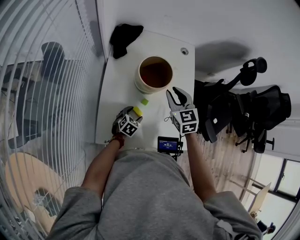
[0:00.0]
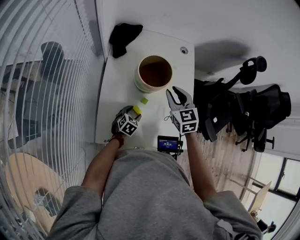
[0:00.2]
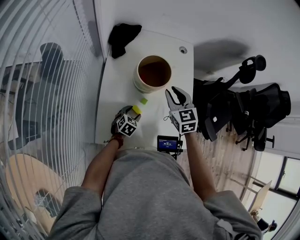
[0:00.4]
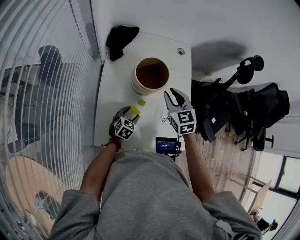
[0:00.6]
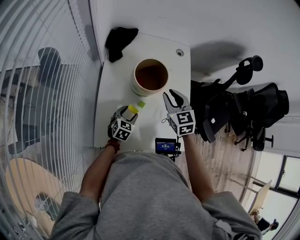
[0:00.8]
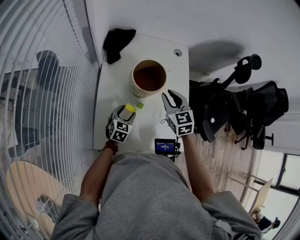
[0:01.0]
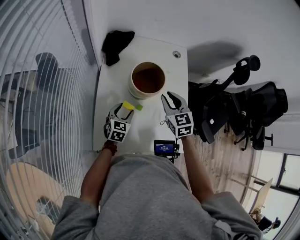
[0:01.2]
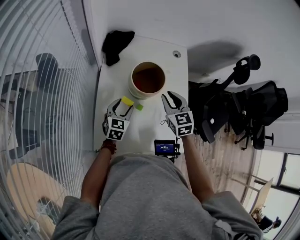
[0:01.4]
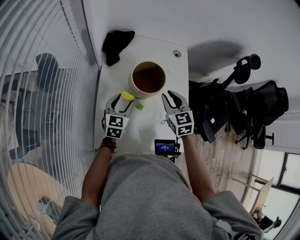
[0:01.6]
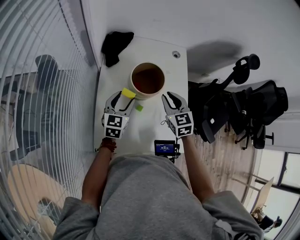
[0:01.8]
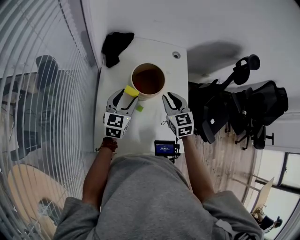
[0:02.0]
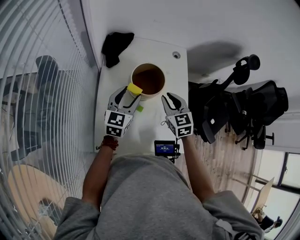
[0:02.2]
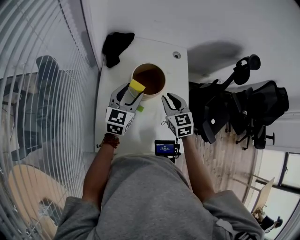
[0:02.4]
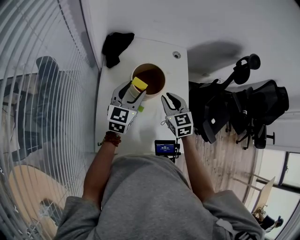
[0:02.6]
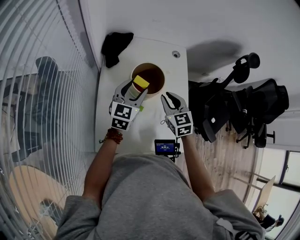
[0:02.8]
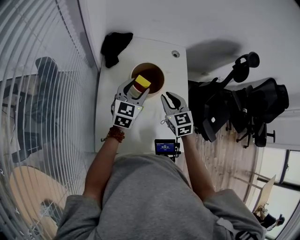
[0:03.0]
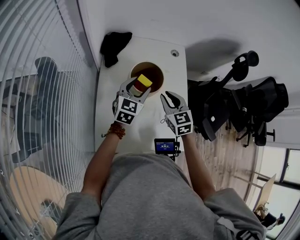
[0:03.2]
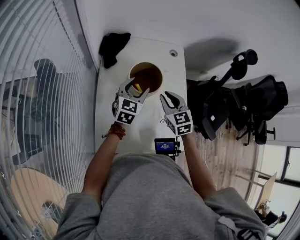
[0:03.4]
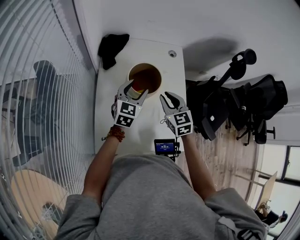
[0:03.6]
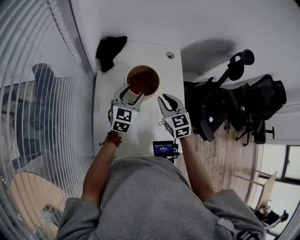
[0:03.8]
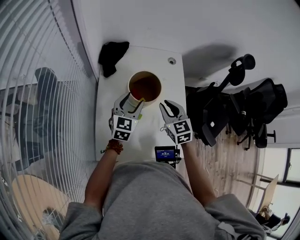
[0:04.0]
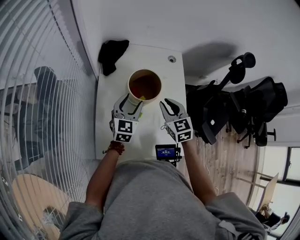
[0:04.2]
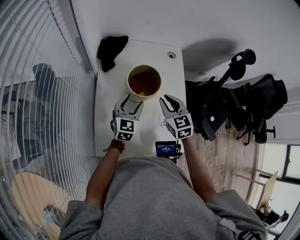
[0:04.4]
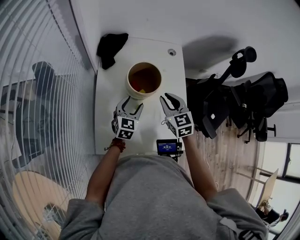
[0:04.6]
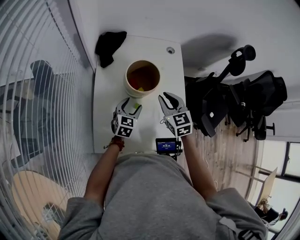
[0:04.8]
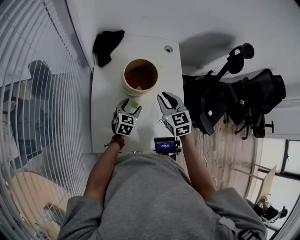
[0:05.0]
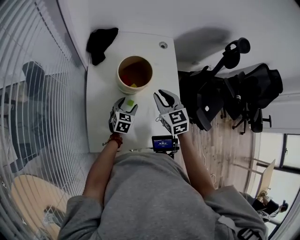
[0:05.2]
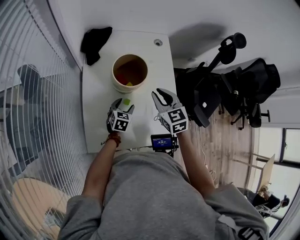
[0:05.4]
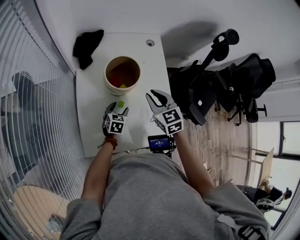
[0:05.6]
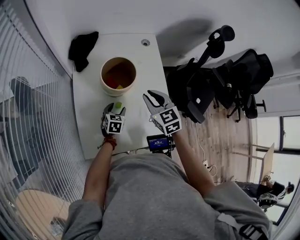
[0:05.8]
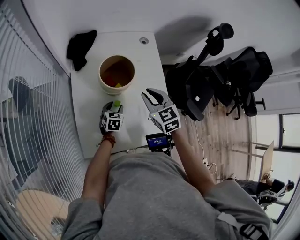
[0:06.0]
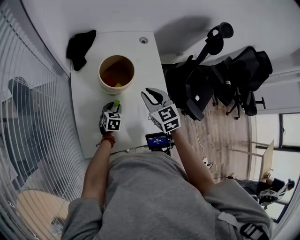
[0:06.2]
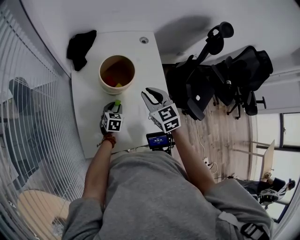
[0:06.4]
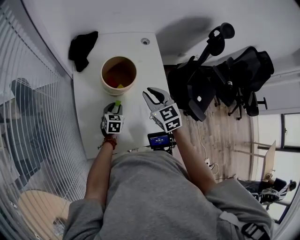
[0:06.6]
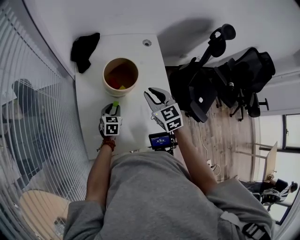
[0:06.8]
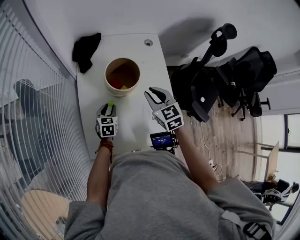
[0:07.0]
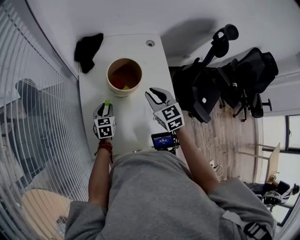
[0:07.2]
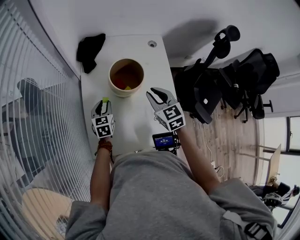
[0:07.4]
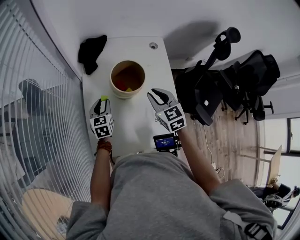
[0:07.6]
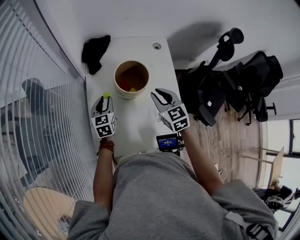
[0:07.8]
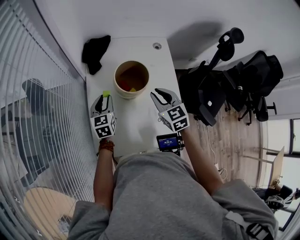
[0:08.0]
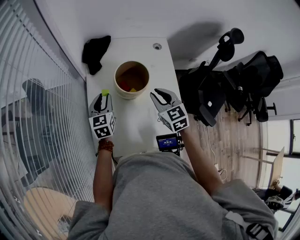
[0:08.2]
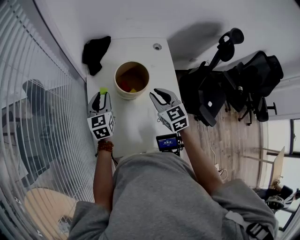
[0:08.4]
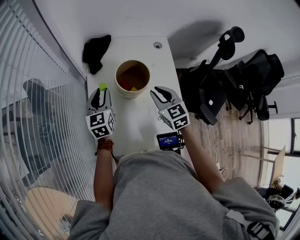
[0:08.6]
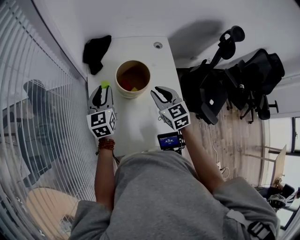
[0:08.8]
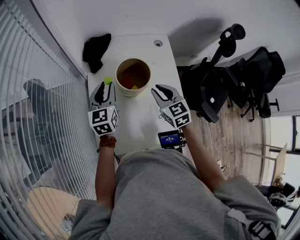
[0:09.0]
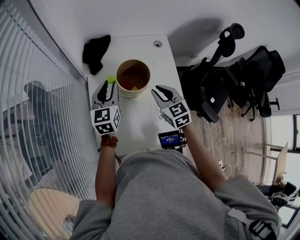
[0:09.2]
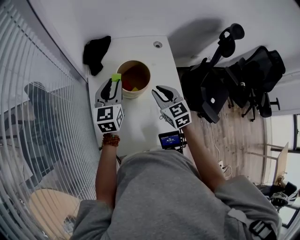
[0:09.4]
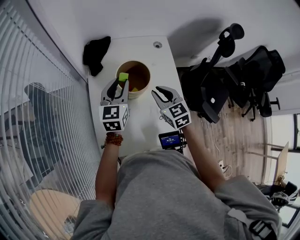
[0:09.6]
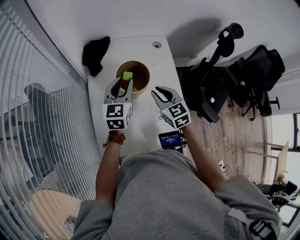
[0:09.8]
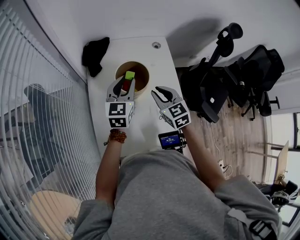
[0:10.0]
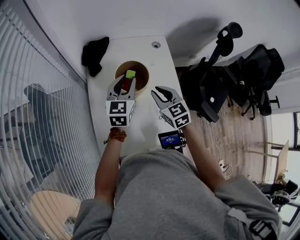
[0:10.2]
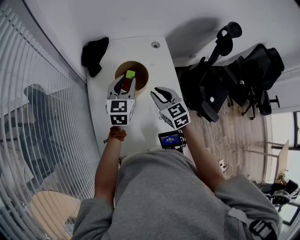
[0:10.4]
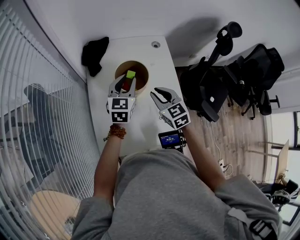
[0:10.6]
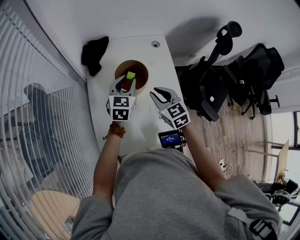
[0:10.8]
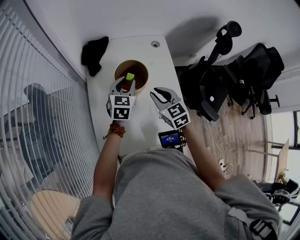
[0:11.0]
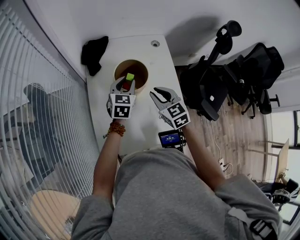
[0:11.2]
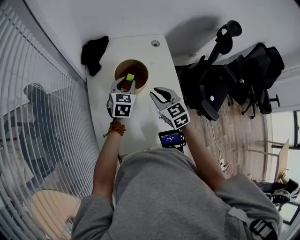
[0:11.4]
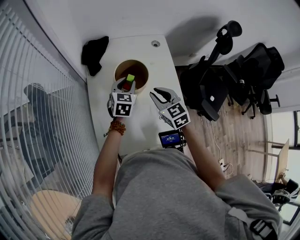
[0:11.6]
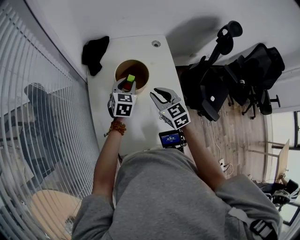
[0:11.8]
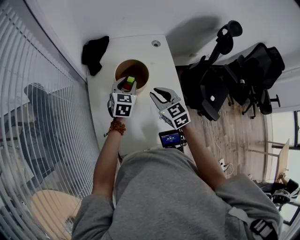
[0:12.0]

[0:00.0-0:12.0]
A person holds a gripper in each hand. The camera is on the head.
0:00.0 to 0:01.6: The left gripper travels upward and forward by about 20 cm, and swivels some 30 degrees.
0:01.6 to 0:03.0: The left gripper goes approximately 10 cm upward, to the right and forward.
0:03.0 to 0:04.4: The left gripper is displaced downward by roughly 5 cm.
0:04.4 to 0:06.0: The left gripper travels downward by some 15 cm, and changes its angle by roughly 30 degrees.
0:06.0 to 0:07.6: The left gripper shifts approximately 15 cm to the left and upward, and changes its angle by approximately 20 degrees.
0:07.6 to 0:09.0: The left gripper travels upward by approximately 15 cm.
0:09.0 to 0:10.4: The left gripper moves to the right, approximately 10 cm.
0:10.4 to 0:12.0: The left gripper moves downward, approximately 10 cm.

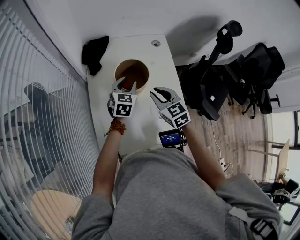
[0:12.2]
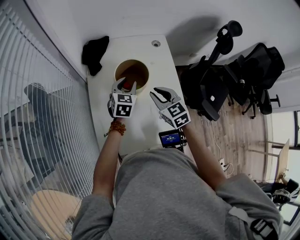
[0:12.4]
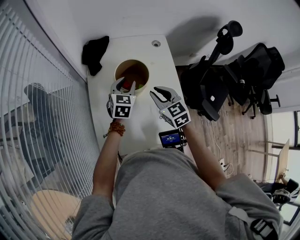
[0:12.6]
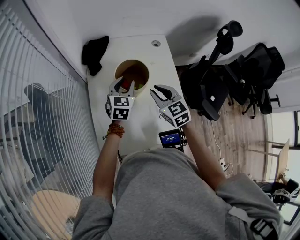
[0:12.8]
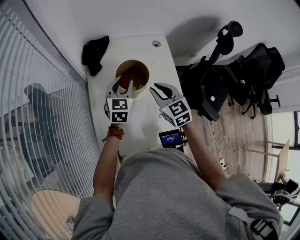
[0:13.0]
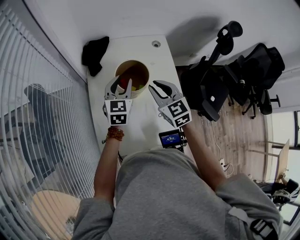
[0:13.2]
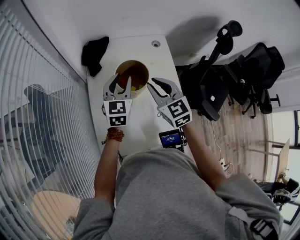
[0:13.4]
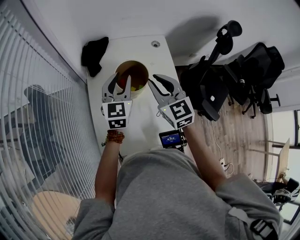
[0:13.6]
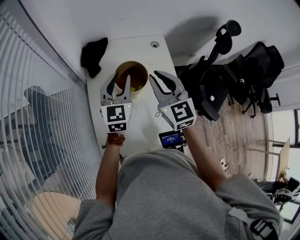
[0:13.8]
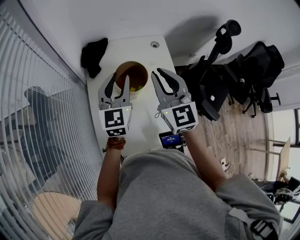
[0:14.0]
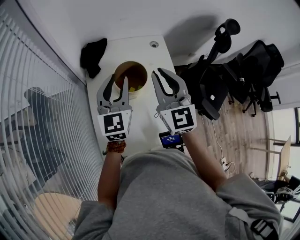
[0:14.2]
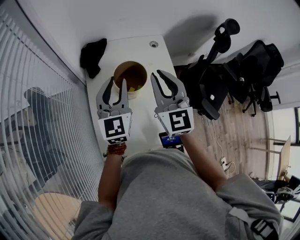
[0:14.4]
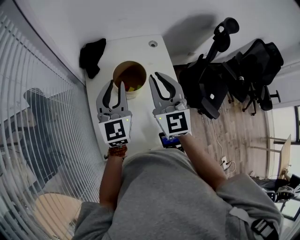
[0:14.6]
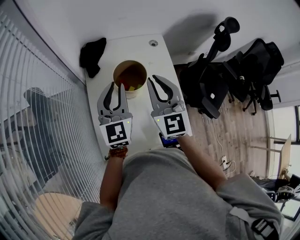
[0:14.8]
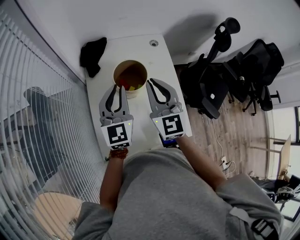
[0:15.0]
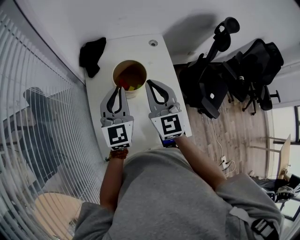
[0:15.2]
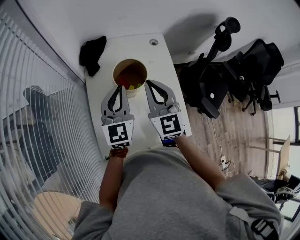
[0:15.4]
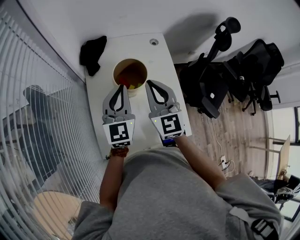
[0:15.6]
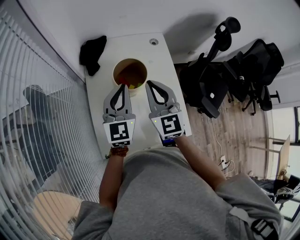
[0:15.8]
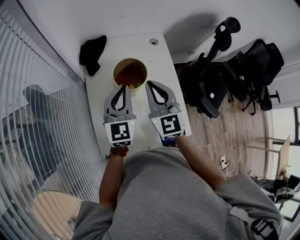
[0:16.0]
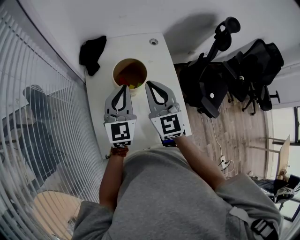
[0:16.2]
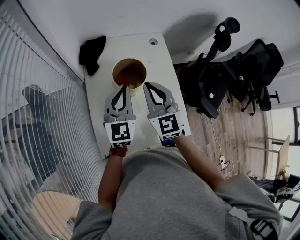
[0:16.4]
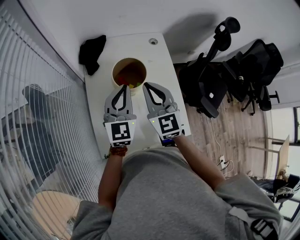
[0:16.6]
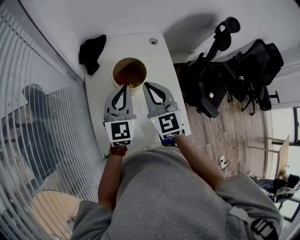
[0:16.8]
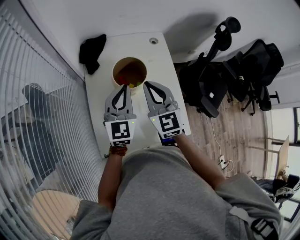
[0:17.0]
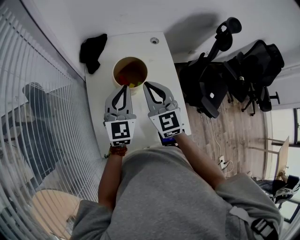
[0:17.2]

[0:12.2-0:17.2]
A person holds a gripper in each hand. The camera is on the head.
0:12.2 to 0:13.8: The two grippers go some 15 cm upward. The right gripper turns by approximately 20 degrees; the left gripper turns by about 20 degrees.
0:13.8 to 0:15.6: The left gripper shifts some 5 cm backward, and closes its fingers.
0:15.6 to 0:17.2: The grippers move only a little.

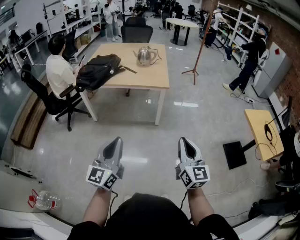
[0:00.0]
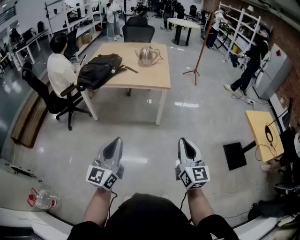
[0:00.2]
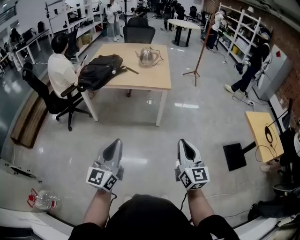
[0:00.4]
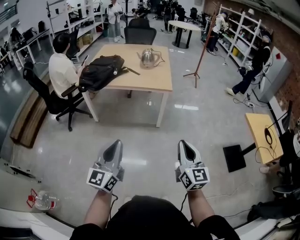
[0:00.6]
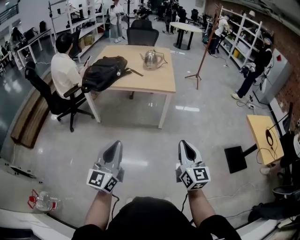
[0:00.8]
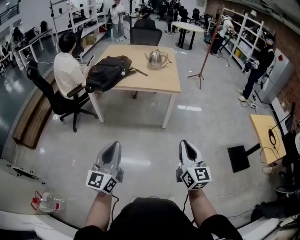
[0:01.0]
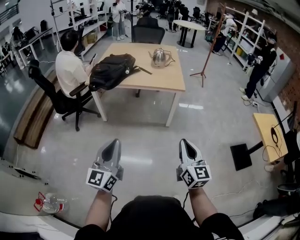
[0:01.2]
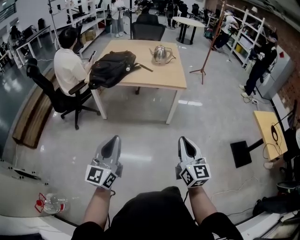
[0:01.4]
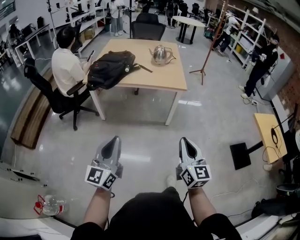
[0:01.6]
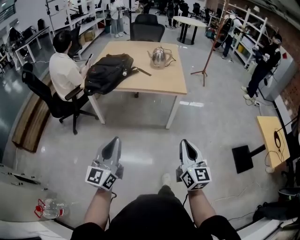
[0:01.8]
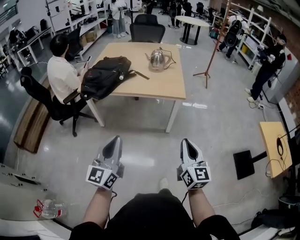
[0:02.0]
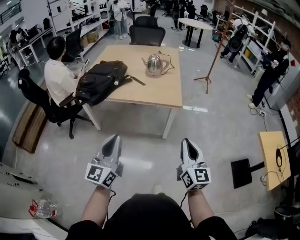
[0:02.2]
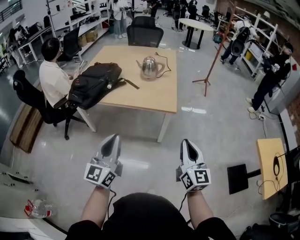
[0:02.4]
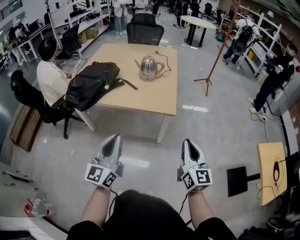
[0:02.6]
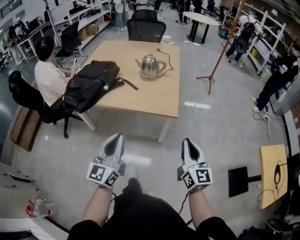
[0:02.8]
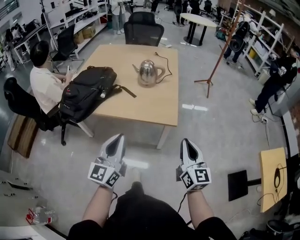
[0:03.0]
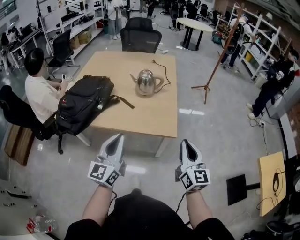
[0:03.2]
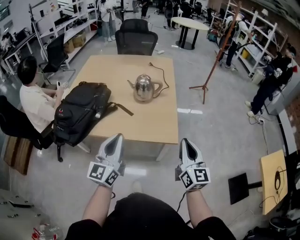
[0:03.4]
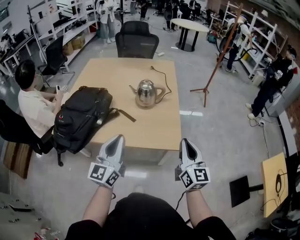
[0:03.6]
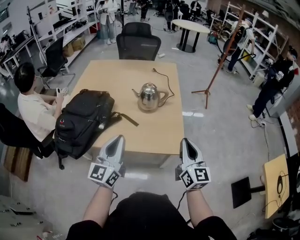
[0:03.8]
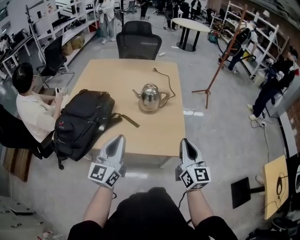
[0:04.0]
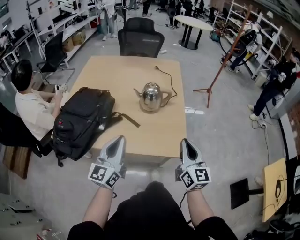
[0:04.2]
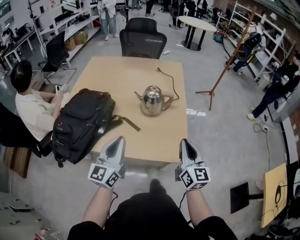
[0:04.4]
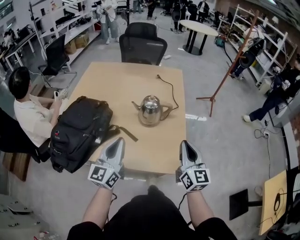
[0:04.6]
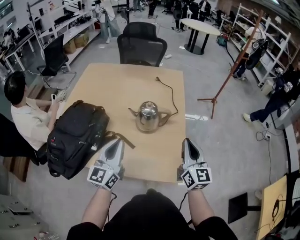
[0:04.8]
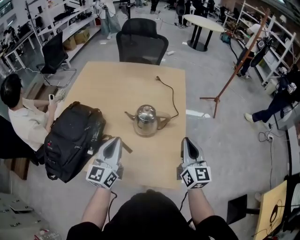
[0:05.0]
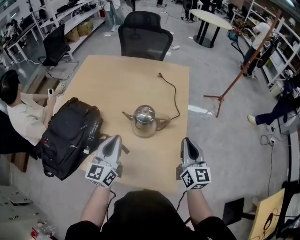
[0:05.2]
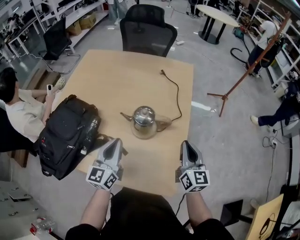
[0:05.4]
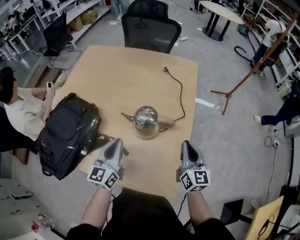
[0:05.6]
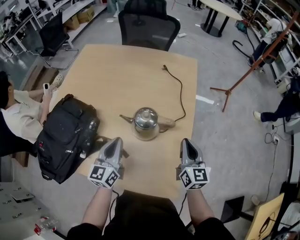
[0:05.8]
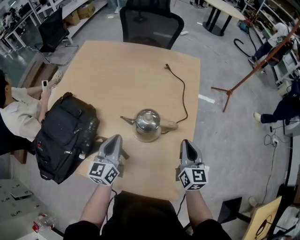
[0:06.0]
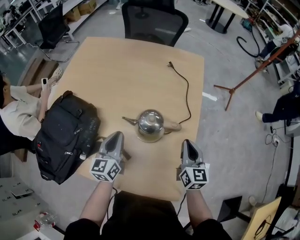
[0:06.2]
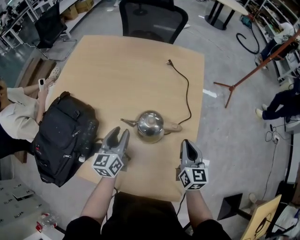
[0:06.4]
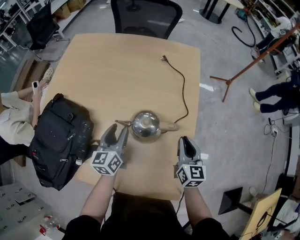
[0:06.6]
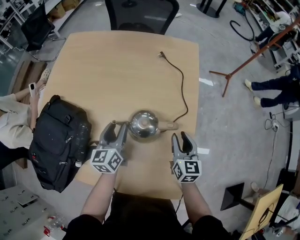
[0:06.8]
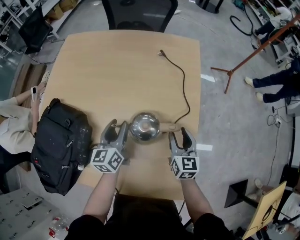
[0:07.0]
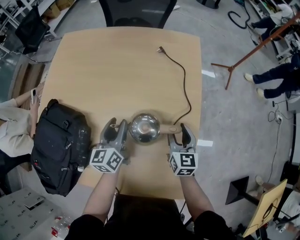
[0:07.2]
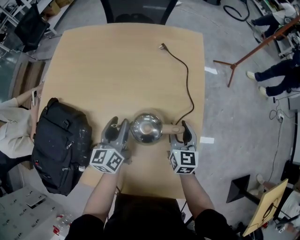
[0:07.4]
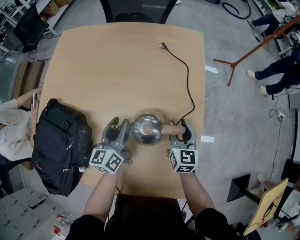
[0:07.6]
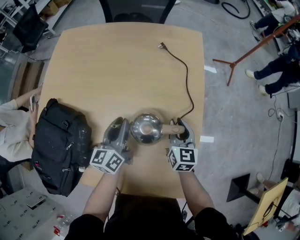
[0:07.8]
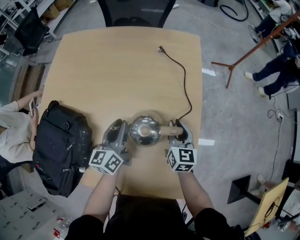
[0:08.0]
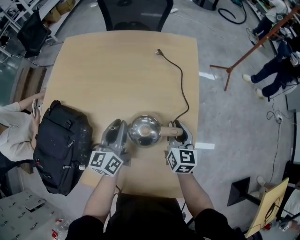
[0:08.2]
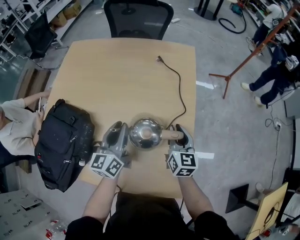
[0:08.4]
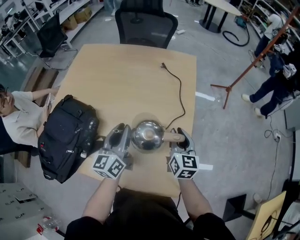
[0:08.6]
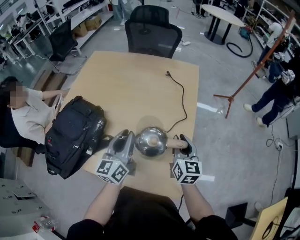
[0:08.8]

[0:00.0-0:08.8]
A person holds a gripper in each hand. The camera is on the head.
0:00.0 to 0:01.4: The two grippers go some 15 cm to the left.
0:01.4 to 0:03.0: The two grippers go roughly 35 cm forward and to the right.
0:03.0 to 0:04.4: Both grippers move forward, approximately 20 cm.
0:04.4 to 0:05.8: Both grippers move forward and downward, approximately 20 cm.
0:05.8 to 0:07.4: The right gripper shifts about 10 cm downward and forward, and opens up; the left gripper goes about 10 cm forward and downward, and opens up.
0:07.4 to 0:08.8: Both grippers travel together upward and backward, about 15 cm. The left gripper closes its fingers; the right gripper closes its fingers.
